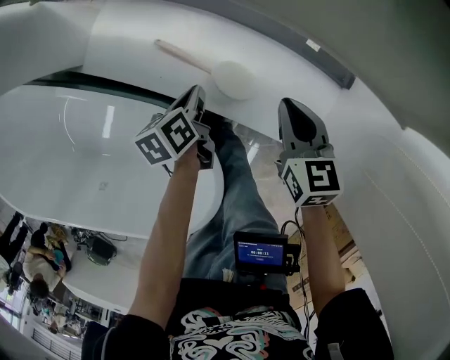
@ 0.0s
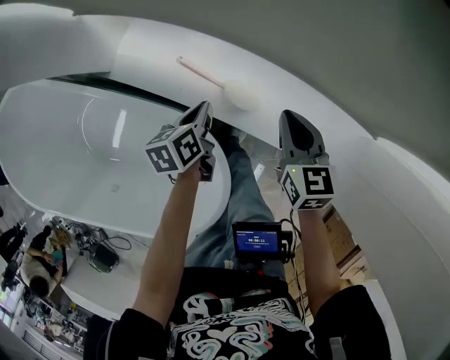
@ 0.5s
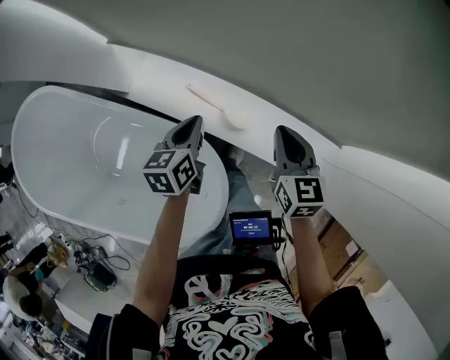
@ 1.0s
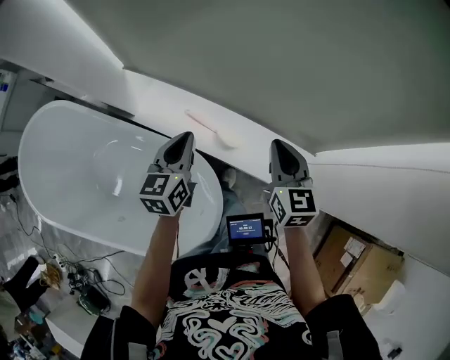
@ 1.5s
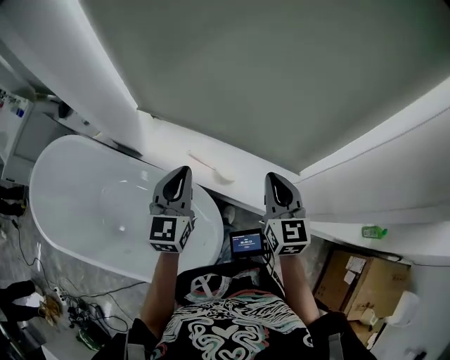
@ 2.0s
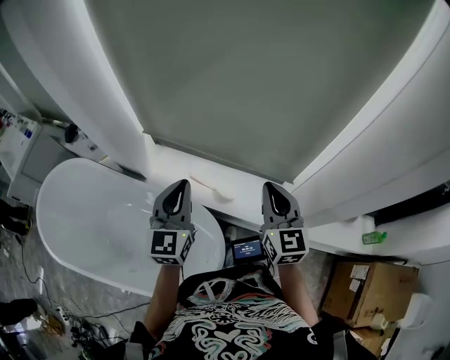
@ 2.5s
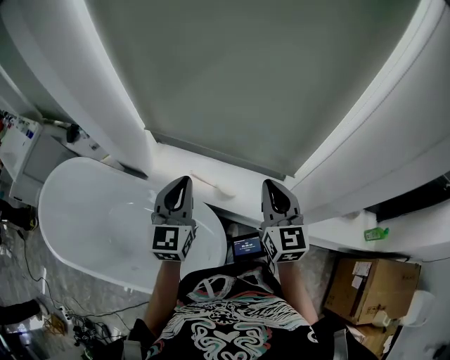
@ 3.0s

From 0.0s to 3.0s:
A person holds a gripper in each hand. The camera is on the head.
From 0.0s to 1.5s: Both grippers travel together upward, about 30 cm. The left gripper turns by about 40 degrees.
From 1.5s to 3.0s: Both grippers move upward and backward, approximately 25 cm. The left gripper changes its angle by some 30 degrees.

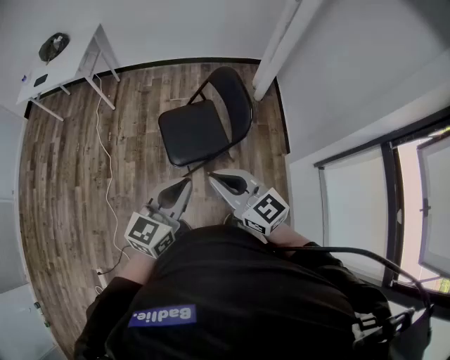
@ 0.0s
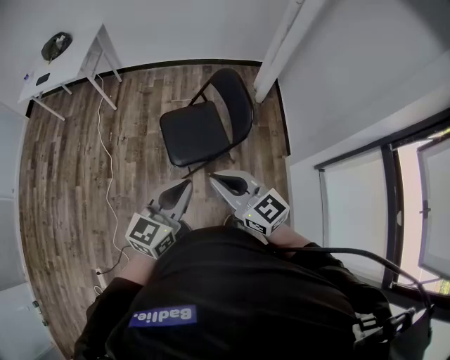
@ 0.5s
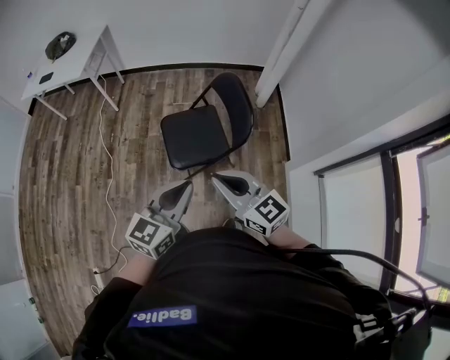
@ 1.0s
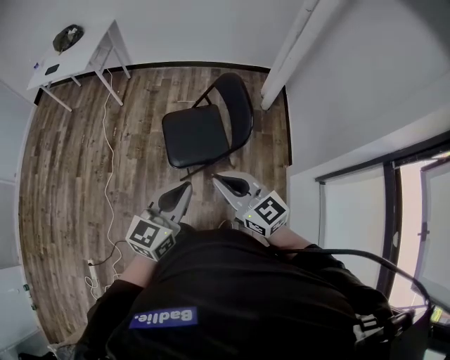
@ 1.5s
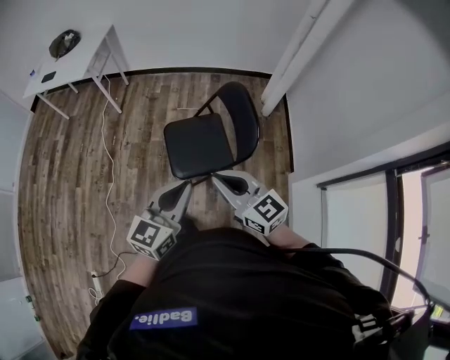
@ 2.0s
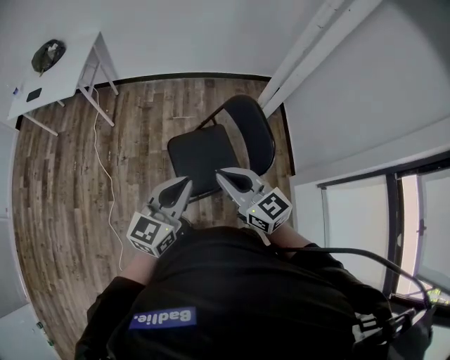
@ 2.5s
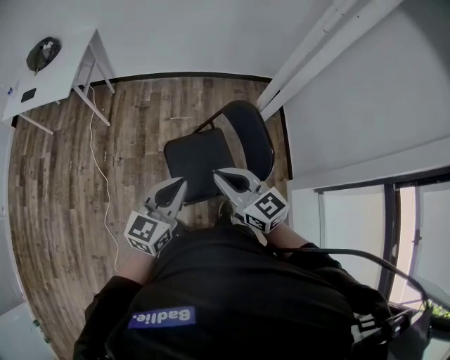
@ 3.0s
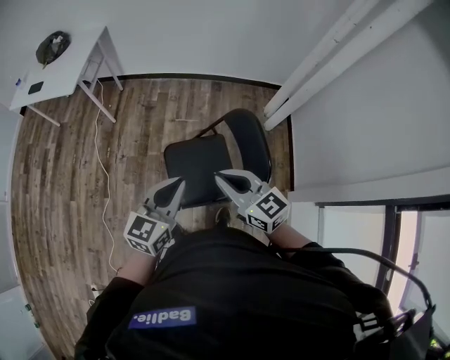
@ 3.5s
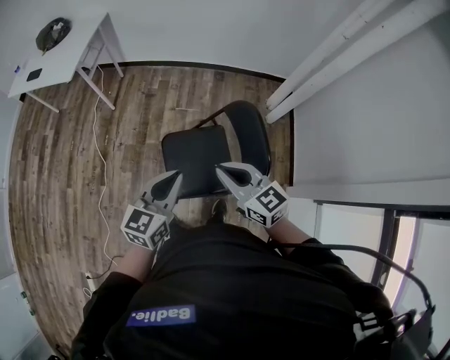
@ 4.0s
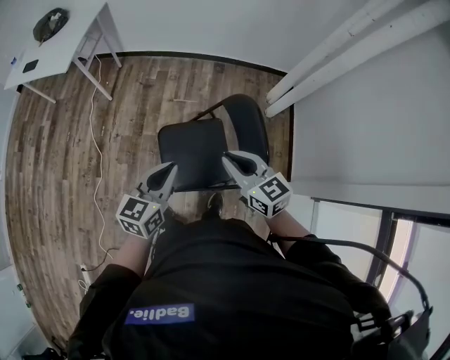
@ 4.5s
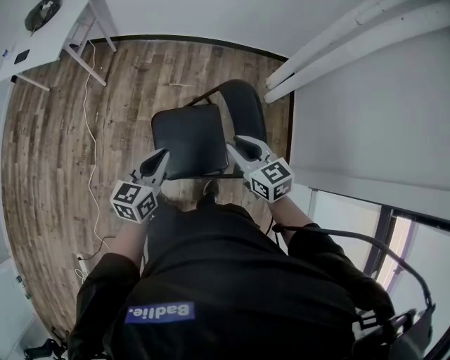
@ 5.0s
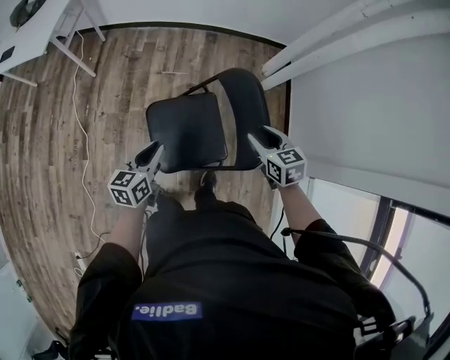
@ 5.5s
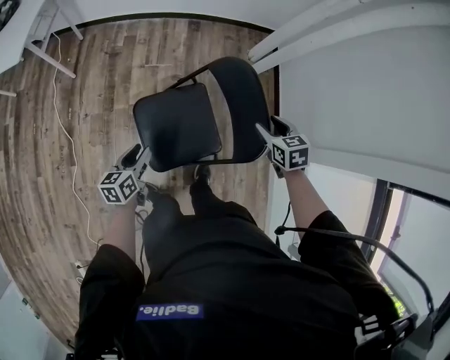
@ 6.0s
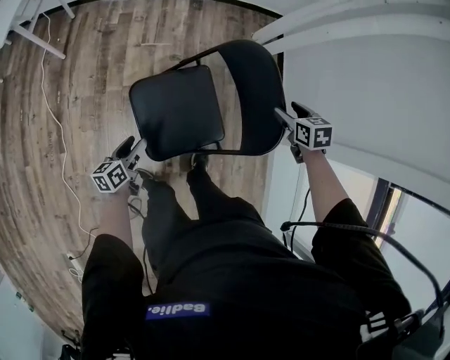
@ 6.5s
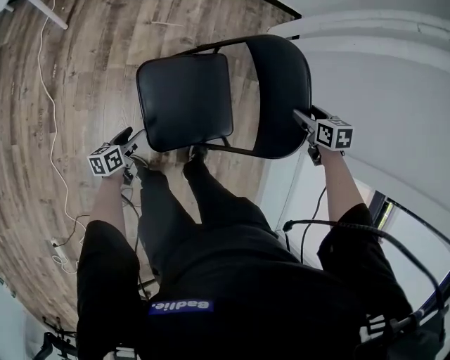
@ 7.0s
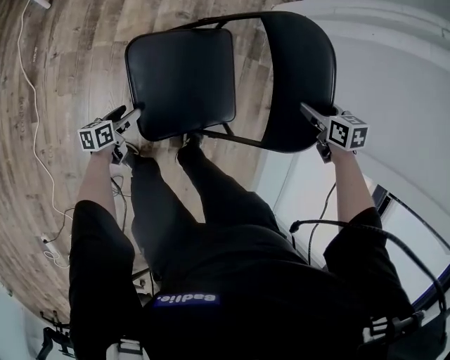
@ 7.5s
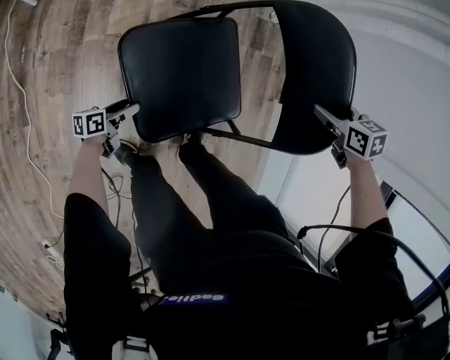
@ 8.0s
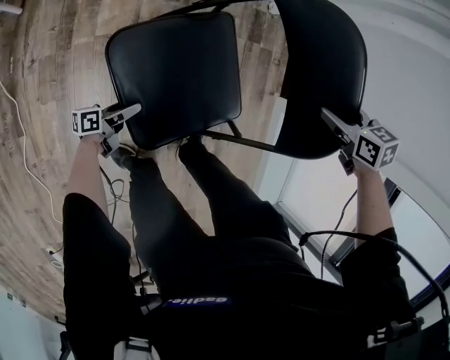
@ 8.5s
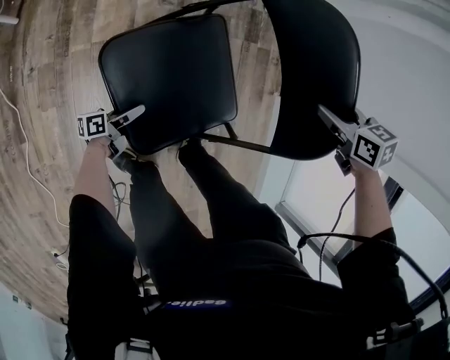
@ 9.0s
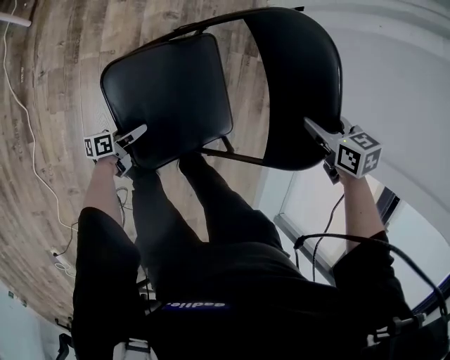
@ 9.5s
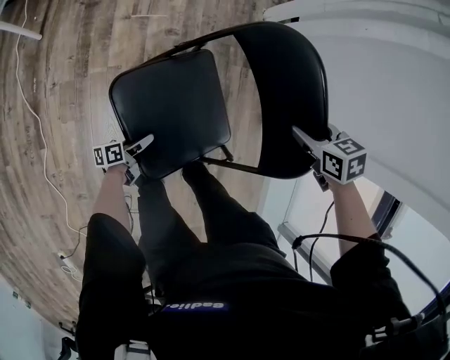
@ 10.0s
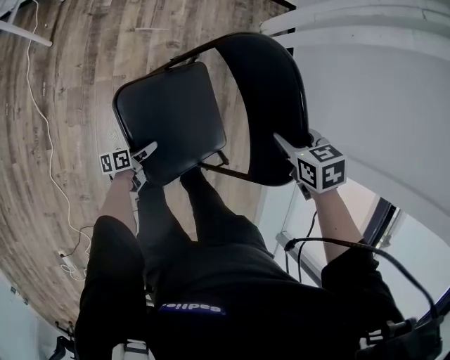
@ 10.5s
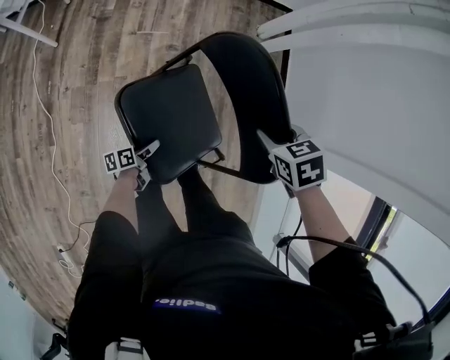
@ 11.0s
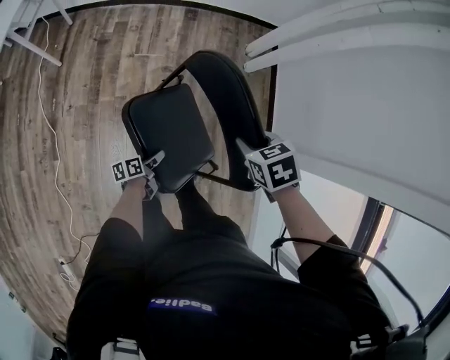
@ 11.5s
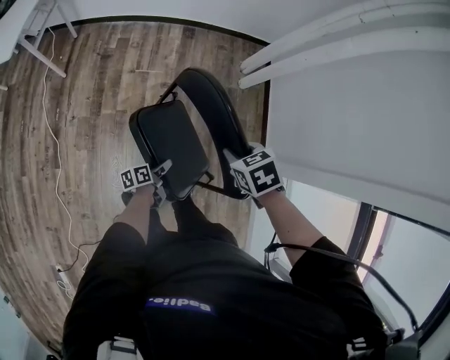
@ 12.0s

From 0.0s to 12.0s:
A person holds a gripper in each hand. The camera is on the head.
From 0.0s to 2.0s: The grippers both shift forward by some 5 cm.
From 2.0s to 4.0s: The two grippers go about 25 cm forward.
From 4.0s to 6.0s: The left gripper heads downward, covering some 30 cm, turns by about 30 degrees, and opens up. The right gripper heads downward, to the right and forward, covering approximately 30 cm, tips its fingers downward by approximately 40 degrees, and opens its fingers.
From 6.0s to 8.0s: The left gripper travels downward by roughly 40 cm, turns by some 40 degrees, and opens up, while the right gripper heads downward, covering about 15 cm, and changes its angle by approximately 20 degrees.
From 8.0s to 10.0s: The right gripper closes its fingers. Meanwhile the left gripper is displaced to the right and upward by some 10 cm.
From 10.0s to 12.0s: The right gripper moves upward, to the left and backward, approximately 15 cm, and closes, while the left gripper is displaced upward and to the right by about 25 cm, and closes.

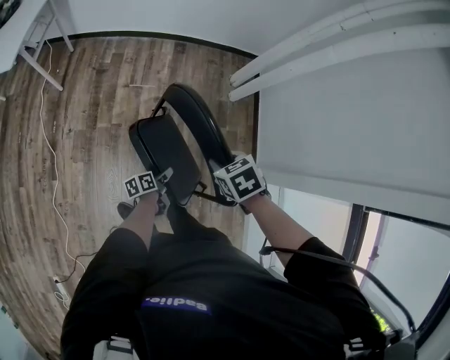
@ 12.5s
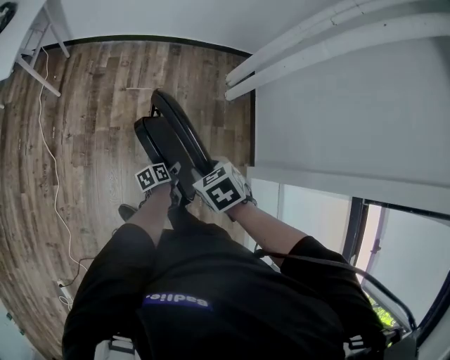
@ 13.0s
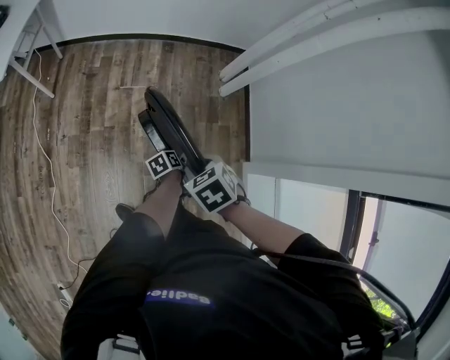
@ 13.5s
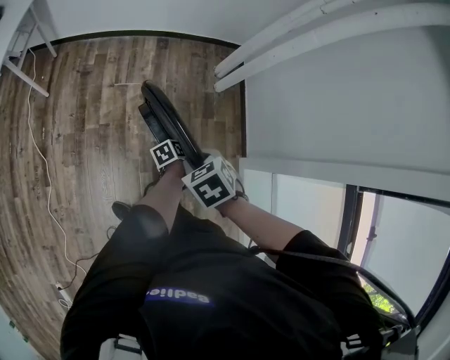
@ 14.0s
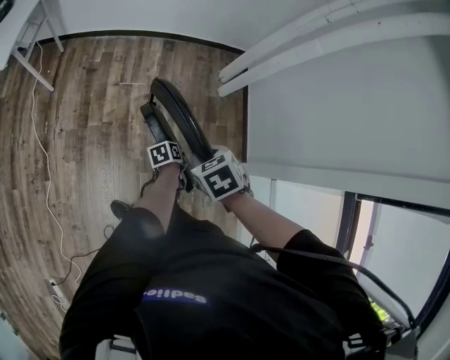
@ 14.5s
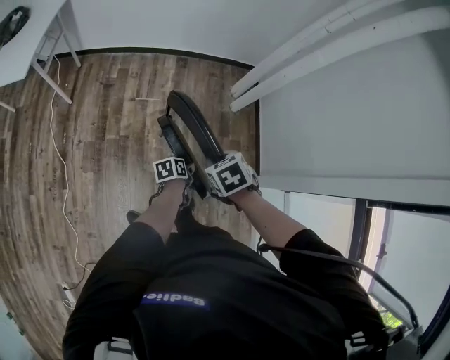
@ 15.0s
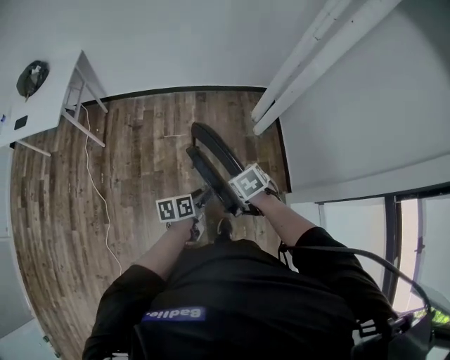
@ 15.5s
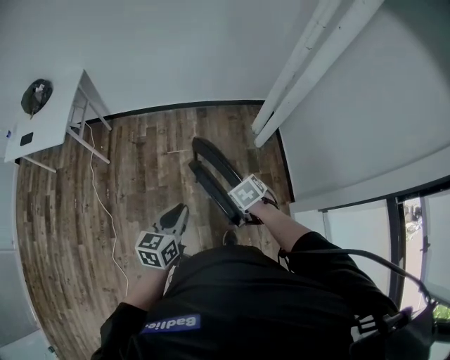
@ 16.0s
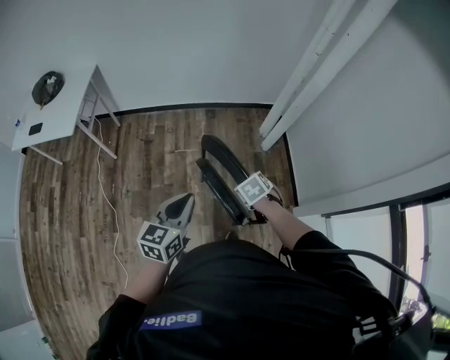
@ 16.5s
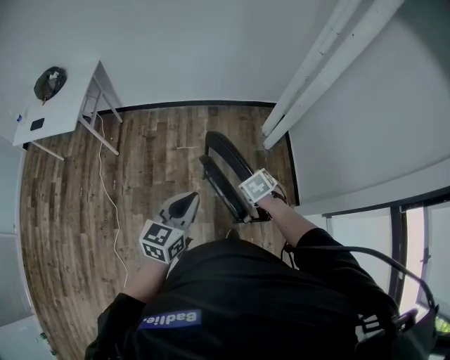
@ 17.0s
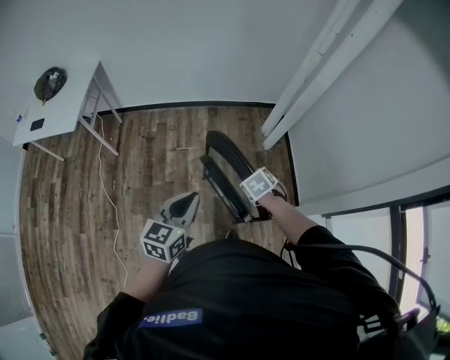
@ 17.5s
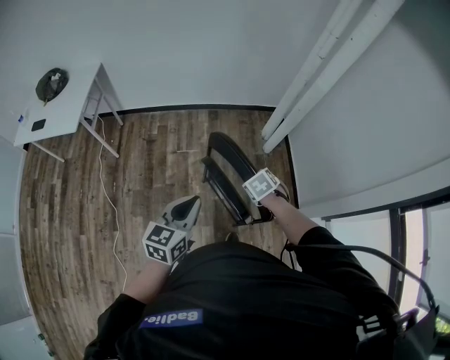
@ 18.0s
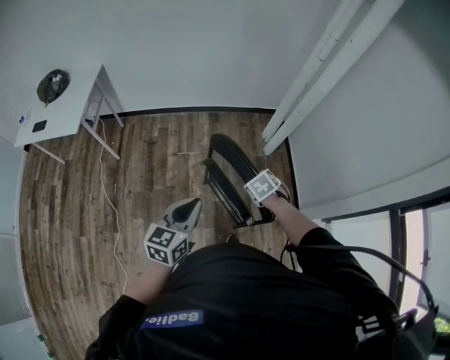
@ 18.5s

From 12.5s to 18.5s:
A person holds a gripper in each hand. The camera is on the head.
From 12.5s to 14.5s: The left gripper travels to the right and forward by some 10 cm.
From 14.5s to 16.5s: The left gripper heads upward, covering about 40 cm, rolls clockwise, seen from behind, by approximately 50 degrees, and closes.
From 16.5s to 18.5s: The grippers make only small movements.

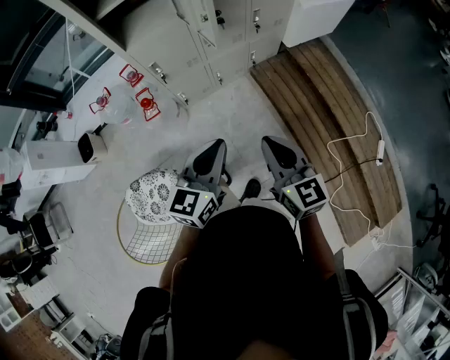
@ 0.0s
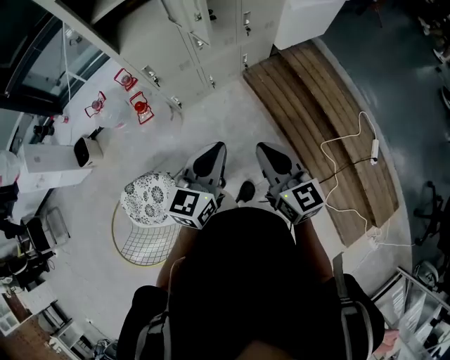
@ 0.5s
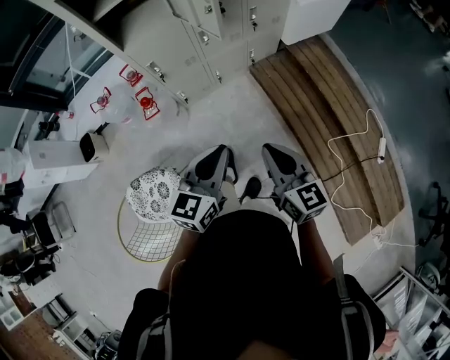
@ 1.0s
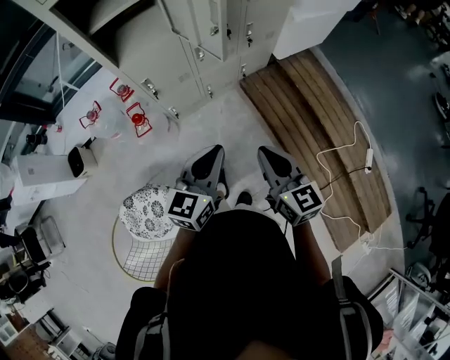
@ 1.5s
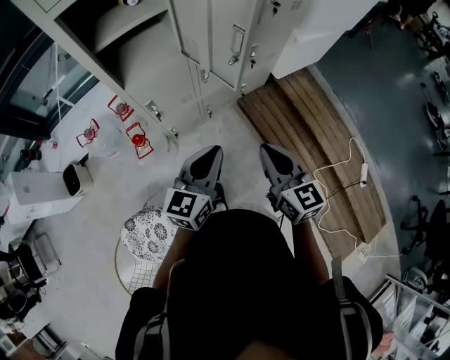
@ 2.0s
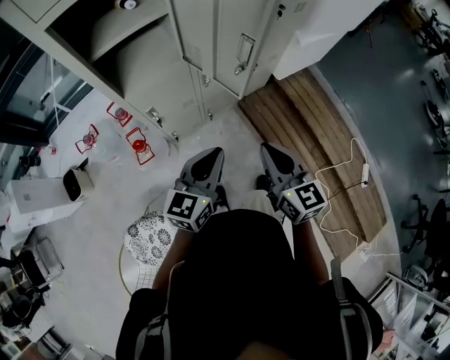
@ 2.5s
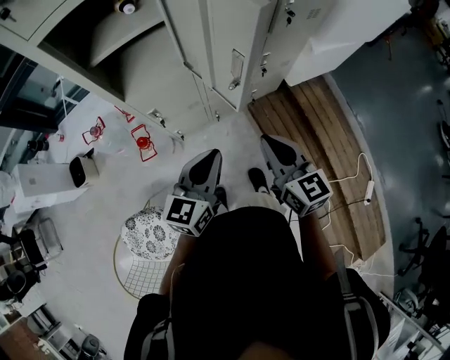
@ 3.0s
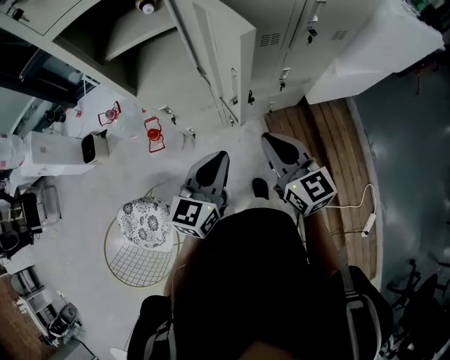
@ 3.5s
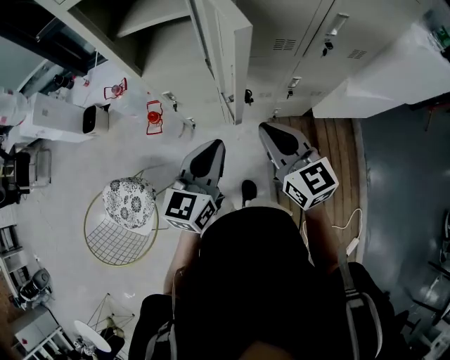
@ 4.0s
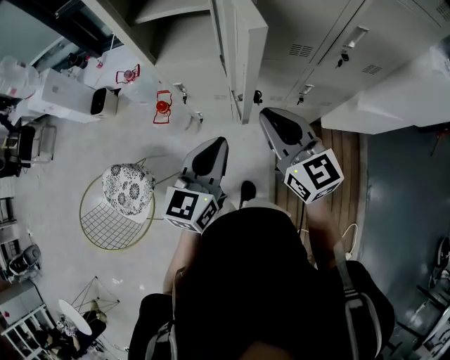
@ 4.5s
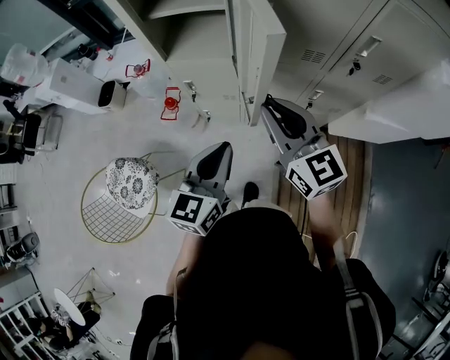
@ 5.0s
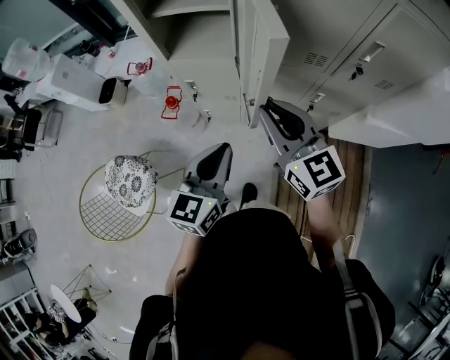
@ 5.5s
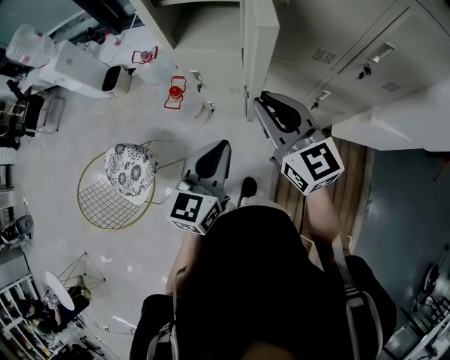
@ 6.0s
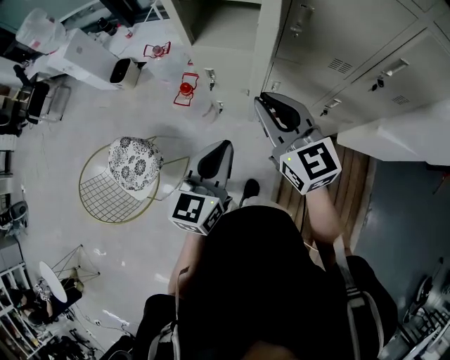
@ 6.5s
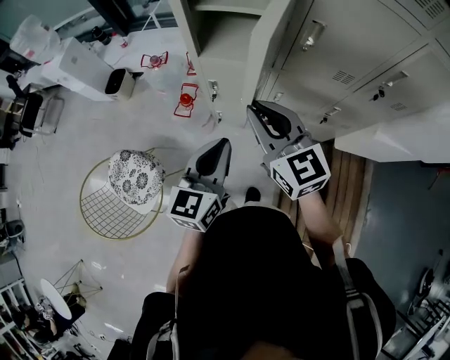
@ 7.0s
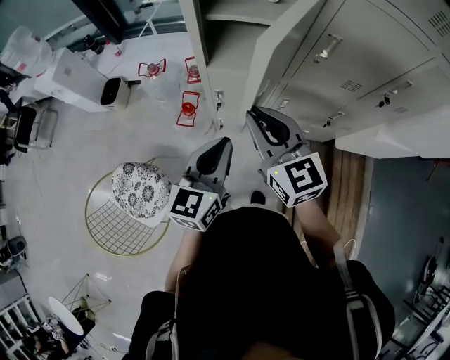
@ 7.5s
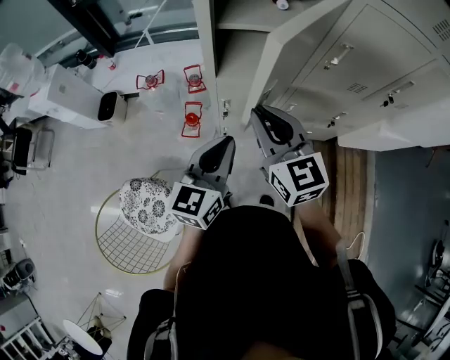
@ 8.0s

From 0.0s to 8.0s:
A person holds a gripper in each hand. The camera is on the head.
From 0.0s to 2.0s: The grippers both shift forward by roughly 15 cm.
From 2.0s to 4.0s: The right gripper moves some 20 cm, and rotates roughly 40 degrees; the left gripper shifts by about 15 cm, and changes its angle by about 30 degrees.
From 4.0s to 6.0s: The right gripper shifts roughly 5 cm to the left.
From 6.0s to 8.0s: Both grippers move to the left and forward, roughly 20 cm.
